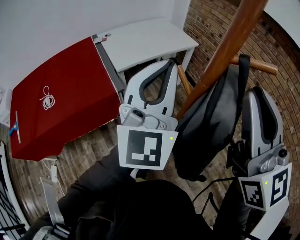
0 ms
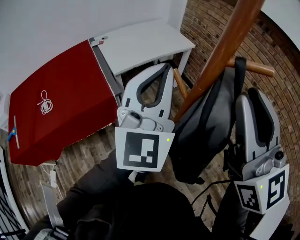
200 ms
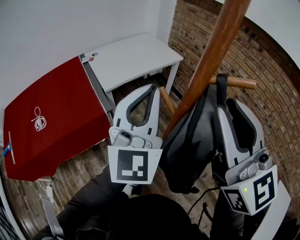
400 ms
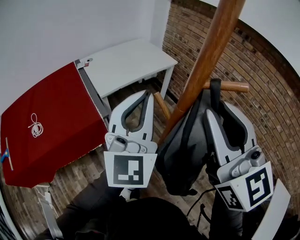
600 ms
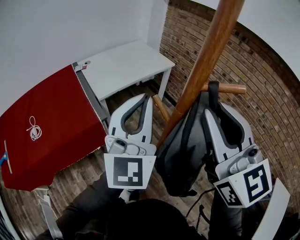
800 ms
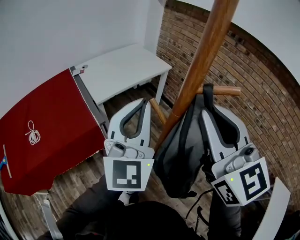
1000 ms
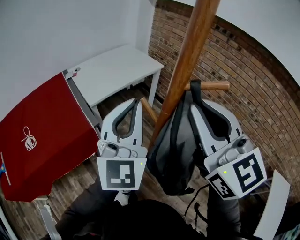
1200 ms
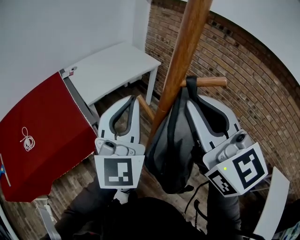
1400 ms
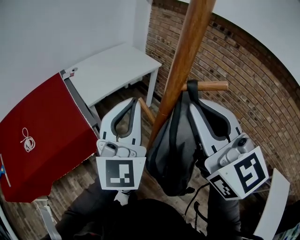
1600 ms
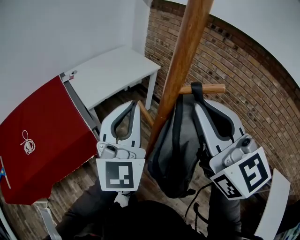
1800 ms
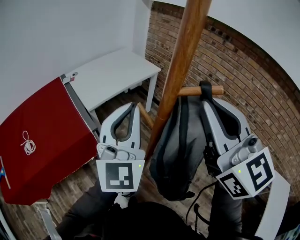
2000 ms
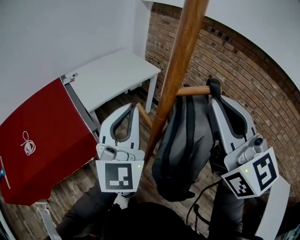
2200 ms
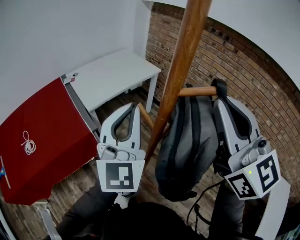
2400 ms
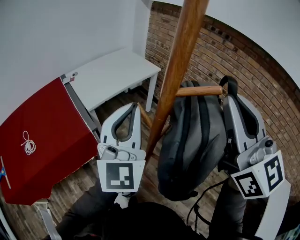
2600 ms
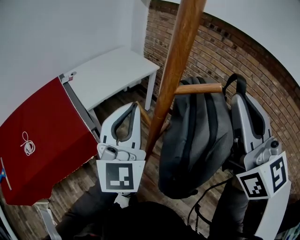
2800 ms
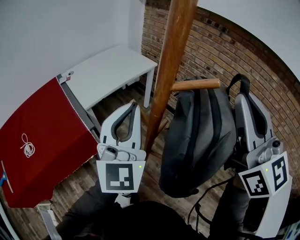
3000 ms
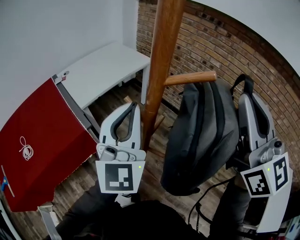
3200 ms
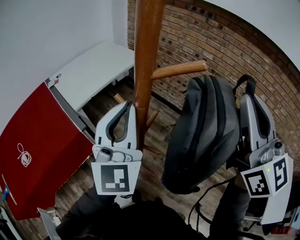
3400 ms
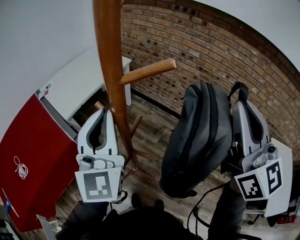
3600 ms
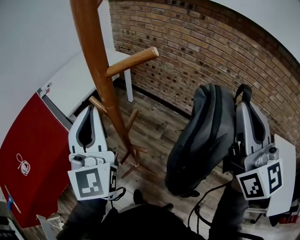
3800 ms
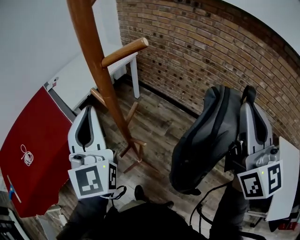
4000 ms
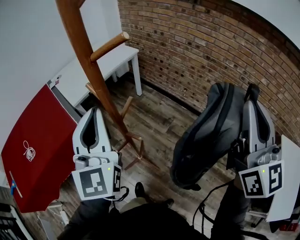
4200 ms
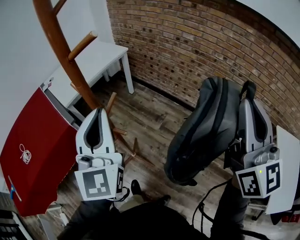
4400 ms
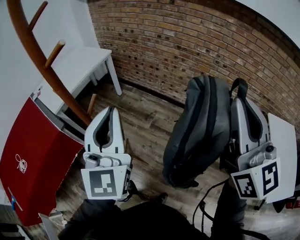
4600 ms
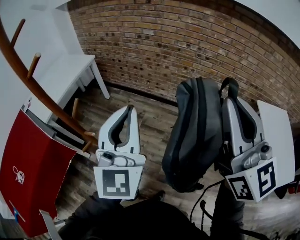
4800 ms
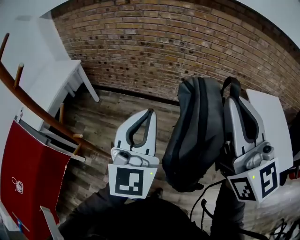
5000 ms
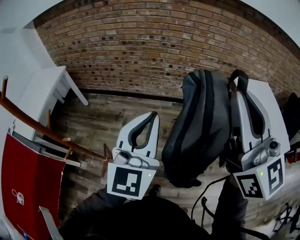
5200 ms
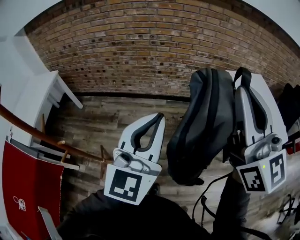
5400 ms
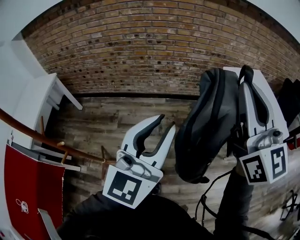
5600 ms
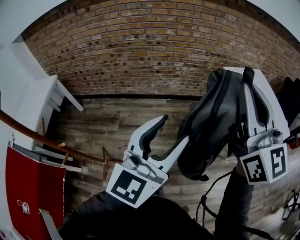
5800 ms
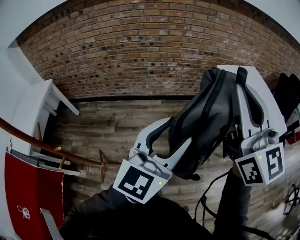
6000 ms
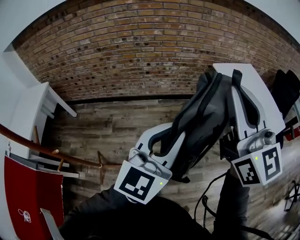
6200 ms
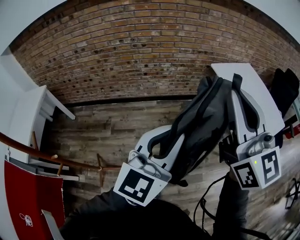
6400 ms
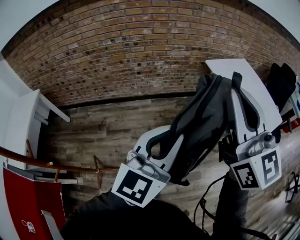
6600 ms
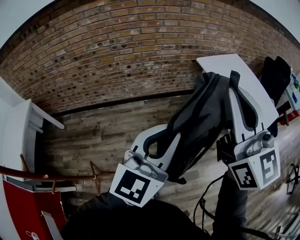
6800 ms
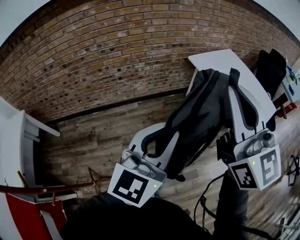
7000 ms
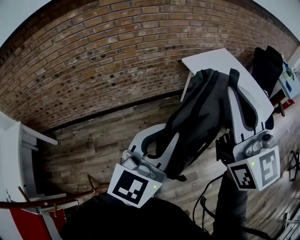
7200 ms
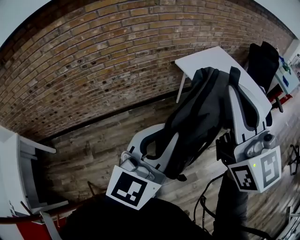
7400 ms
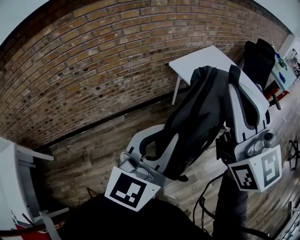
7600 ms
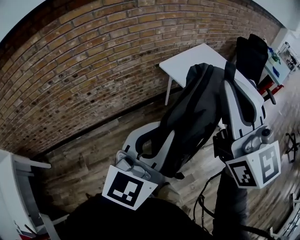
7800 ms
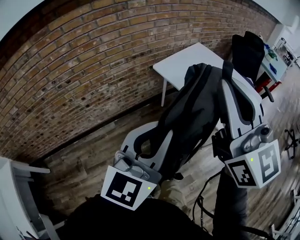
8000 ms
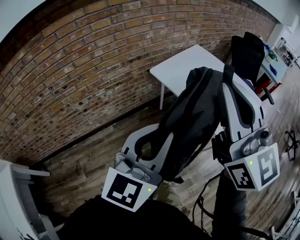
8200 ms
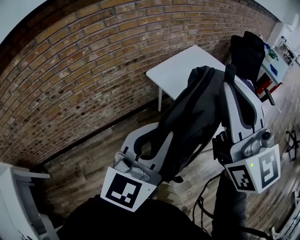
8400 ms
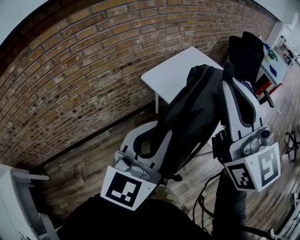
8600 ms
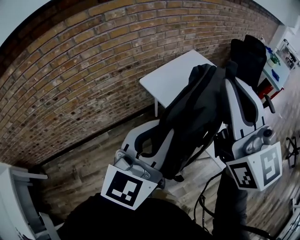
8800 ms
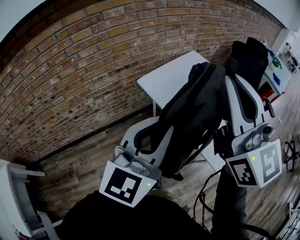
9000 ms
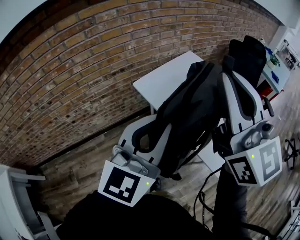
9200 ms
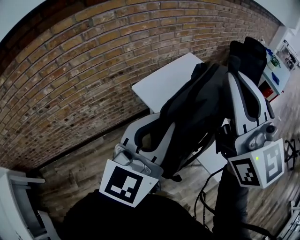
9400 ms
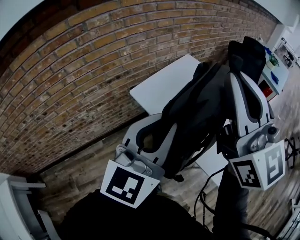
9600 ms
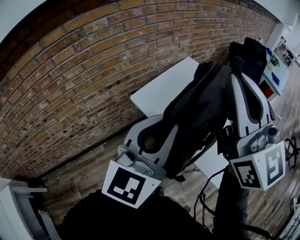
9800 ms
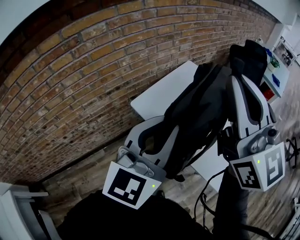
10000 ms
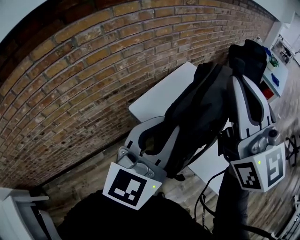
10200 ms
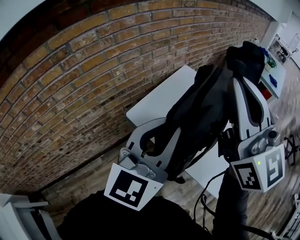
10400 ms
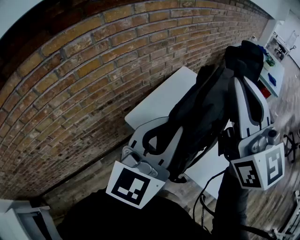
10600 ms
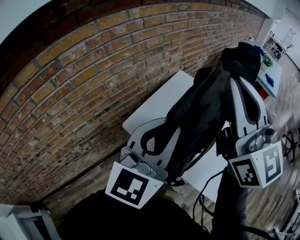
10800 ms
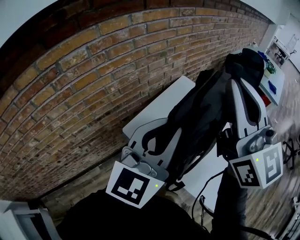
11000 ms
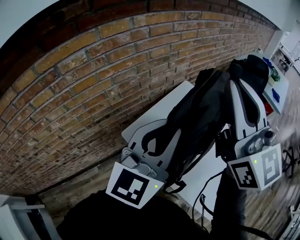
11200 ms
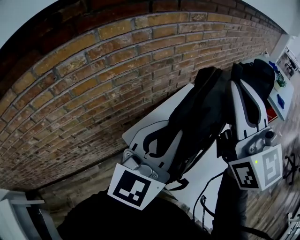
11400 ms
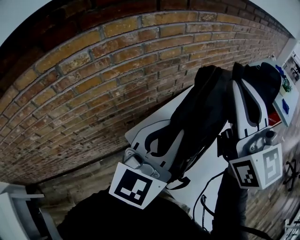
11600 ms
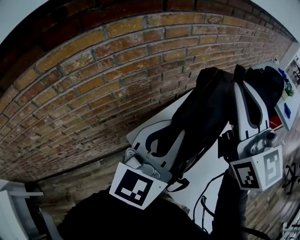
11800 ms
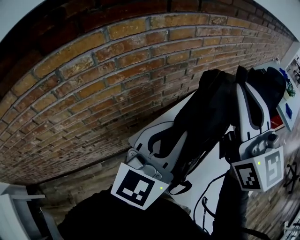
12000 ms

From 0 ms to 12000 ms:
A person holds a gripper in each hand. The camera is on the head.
From 0 ms to 1600 ms: The grippers make only small movements.
From 1600 ms to 3000 ms: The right gripper is displaced to the right and upward by about 10 cm.
From 3000 ms to 4400 ms: The left gripper heads to the right and backward, covering roughly 15 cm. Meanwhile the right gripper moves to the right and backward, some 25 cm.
From 4400 ms to 6000 ms: The right gripper moves about 35 cm, and rotates approximately 30 degrees, while the left gripper shifts by some 50 cm, turns by about 80 degrees, and opens up.
From 6000 ms to 7600 ms: The two grippers go about 25 cm forward and to the right. The left gripper rotates some 20 degrees, and closes up. Meanwhile the right gripper swivels some 20 degrees.
From 7600 ms to 9000 ms: Both grippers move forward and to the right, some 25 cm.
From 9000 ms to 10400 ms: The two grippers go about 20 cm forward.
From 10400 ms to 12000 ms: Both grippers travel together forward, roughly 20 cm.

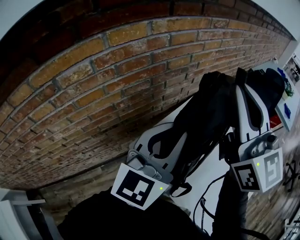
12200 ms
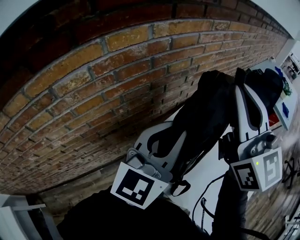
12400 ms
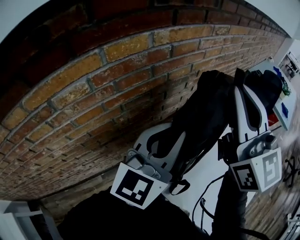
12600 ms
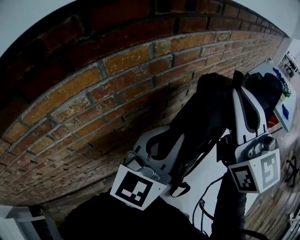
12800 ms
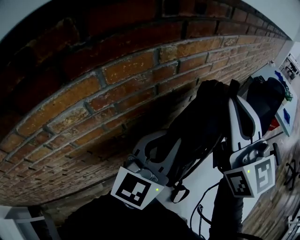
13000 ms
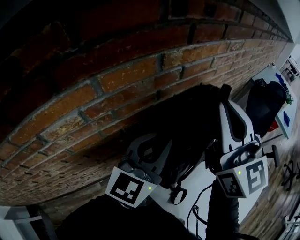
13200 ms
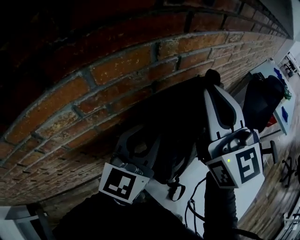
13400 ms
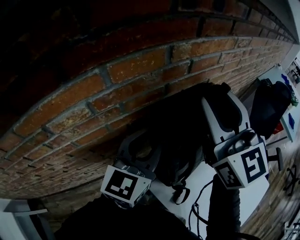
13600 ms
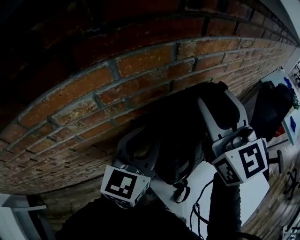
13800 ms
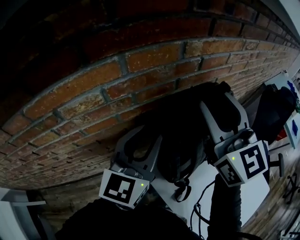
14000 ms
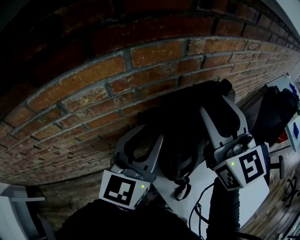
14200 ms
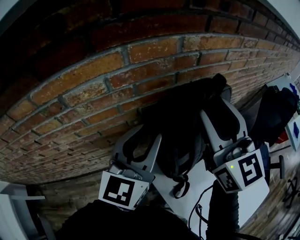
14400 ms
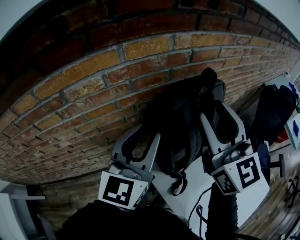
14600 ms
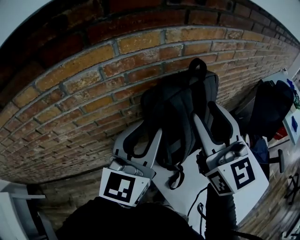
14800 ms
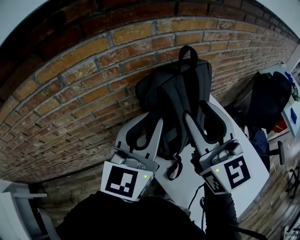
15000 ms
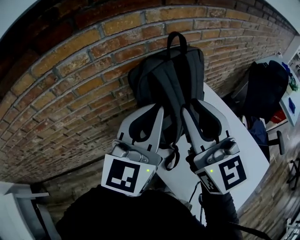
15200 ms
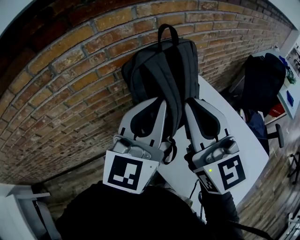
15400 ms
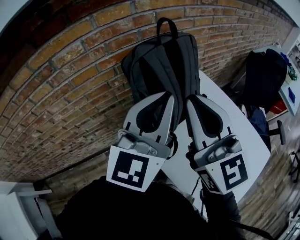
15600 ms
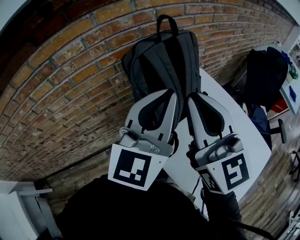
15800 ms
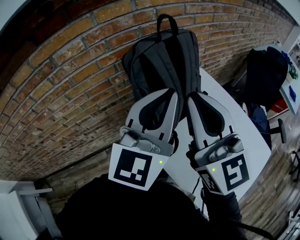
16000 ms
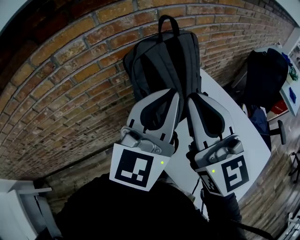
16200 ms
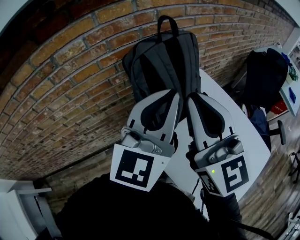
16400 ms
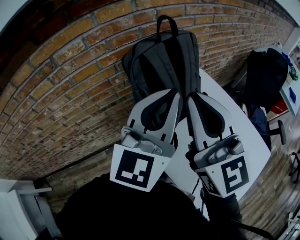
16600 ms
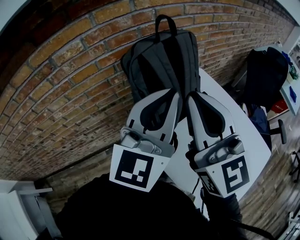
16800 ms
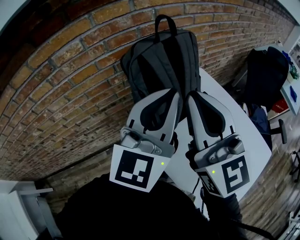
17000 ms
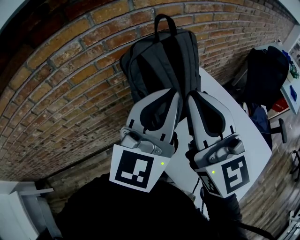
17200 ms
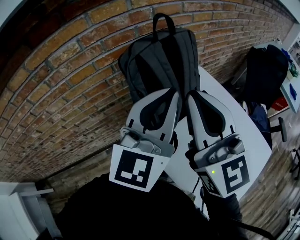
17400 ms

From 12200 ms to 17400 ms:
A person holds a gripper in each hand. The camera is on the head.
From 12200 ms to 14000 ms: The right gripper goes some 20 cm to the left, forward and downward, and opens up. Meanwhile the left gripper is displaced to the left and forward by roughly 20 cm.
From 14000 ms to 15600 ms: The left gripper goes roughly 20 cm backward and to the right, and closes up. The right gripper goes about 20 cm backward, and closes.
From 15600 ms to 17400 ms: The grippers move only a little.

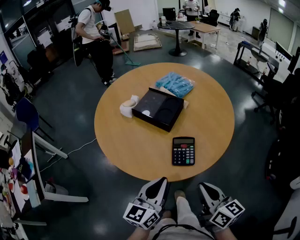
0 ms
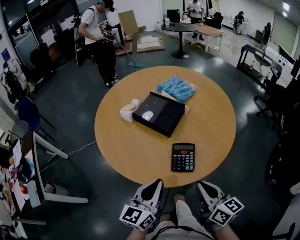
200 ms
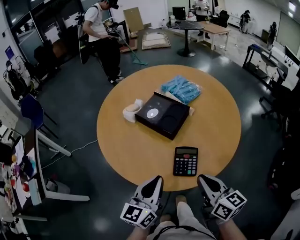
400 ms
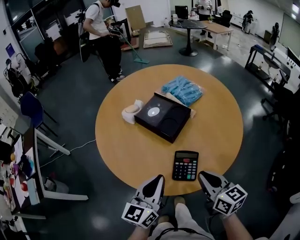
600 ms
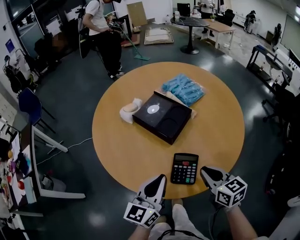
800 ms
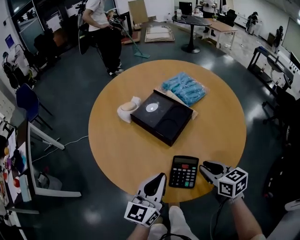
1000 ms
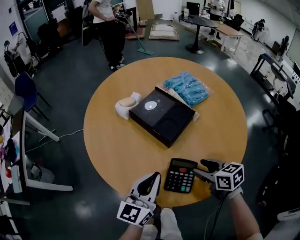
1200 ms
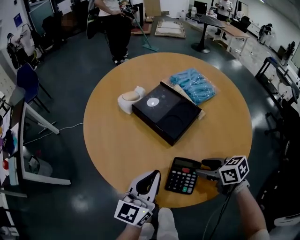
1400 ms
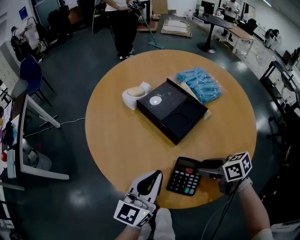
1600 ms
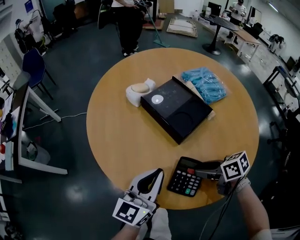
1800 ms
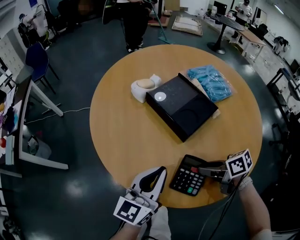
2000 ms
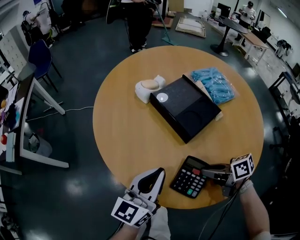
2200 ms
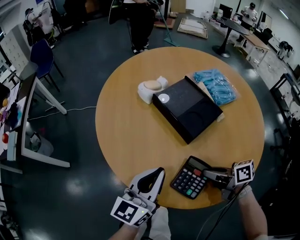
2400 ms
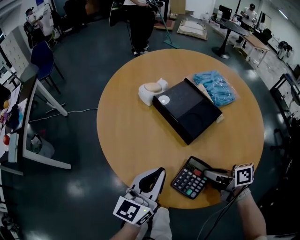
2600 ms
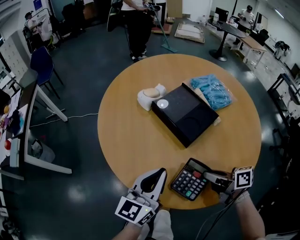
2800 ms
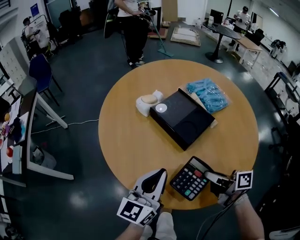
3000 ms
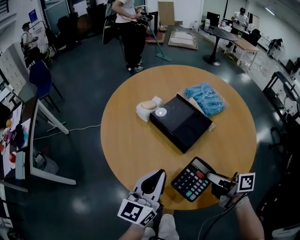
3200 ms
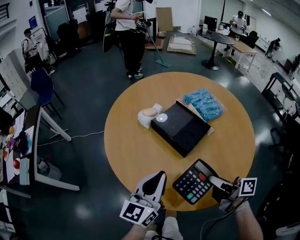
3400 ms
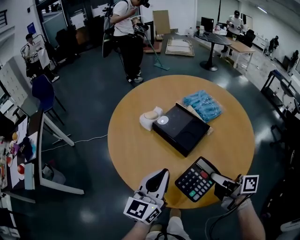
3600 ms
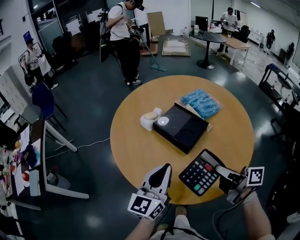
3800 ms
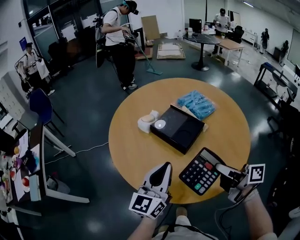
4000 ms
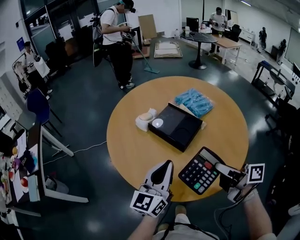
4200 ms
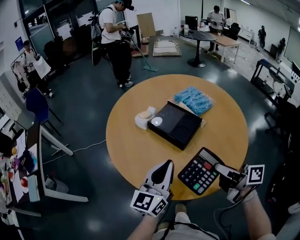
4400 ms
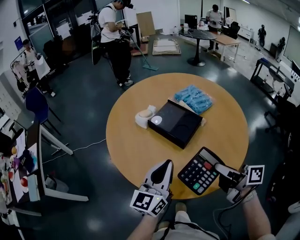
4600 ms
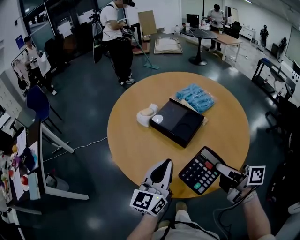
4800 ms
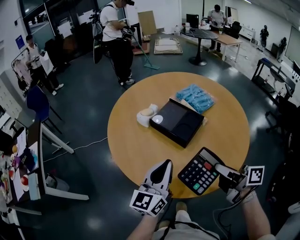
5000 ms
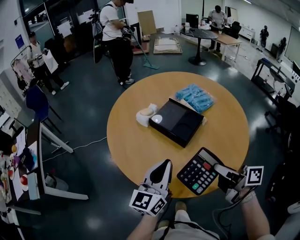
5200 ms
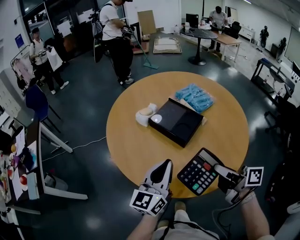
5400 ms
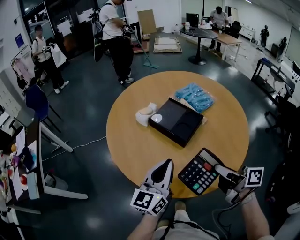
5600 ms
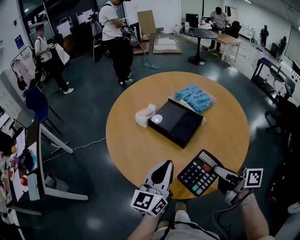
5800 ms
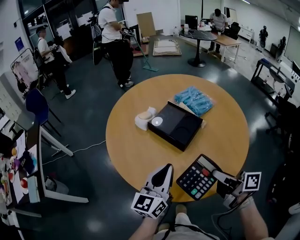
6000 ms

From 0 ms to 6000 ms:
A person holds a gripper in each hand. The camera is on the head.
From 0 ms to 1600 ms: The left gripper ends up approximately 15 cm from where it was, while the right gripper shifts by roughly 30 cm, points its fingers some 30 degrees further downward, and opens up.
From 1600 ms to 3000 ms: The right gripper goes some 5 cm upward, turns by about 30 degrees, and closes.
From 3000 ms to 4400 ms: The left gripper goes approximately 10 cm upward. Meanwhile the right gripper shifts about 15 cm upward and backward.
From 4400 ms to 6000 ms: The grippers stay close to where they were, moving slightly.
